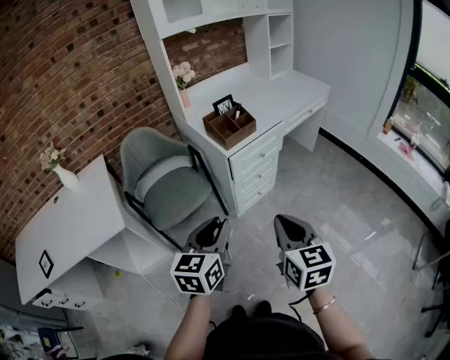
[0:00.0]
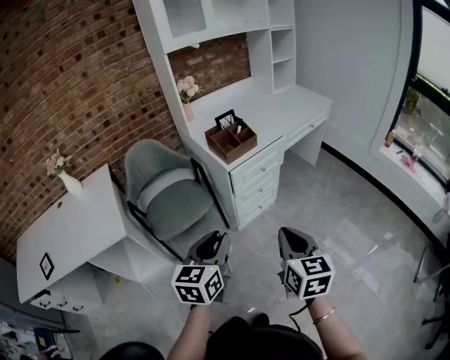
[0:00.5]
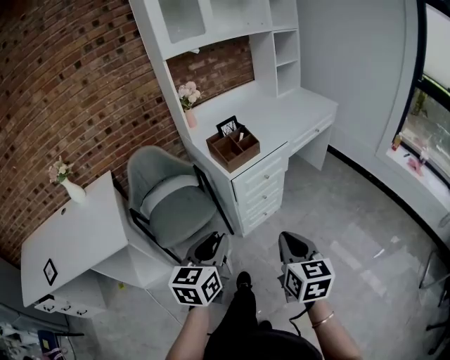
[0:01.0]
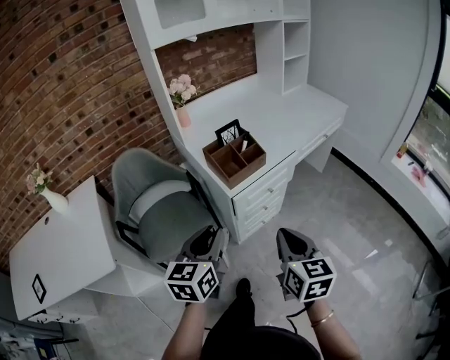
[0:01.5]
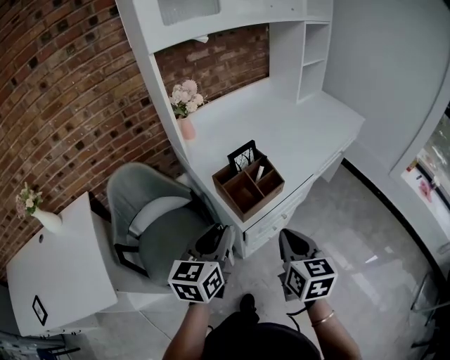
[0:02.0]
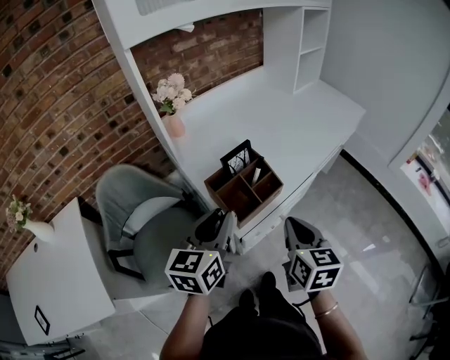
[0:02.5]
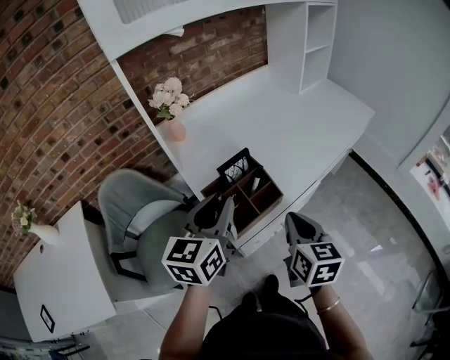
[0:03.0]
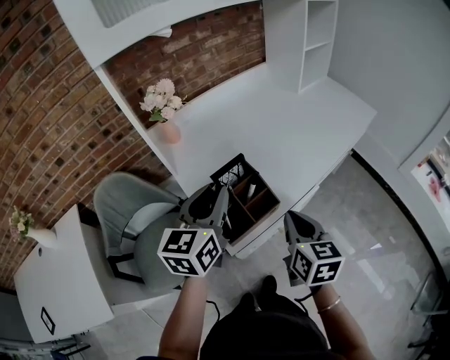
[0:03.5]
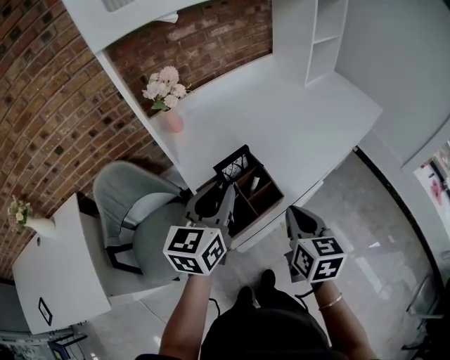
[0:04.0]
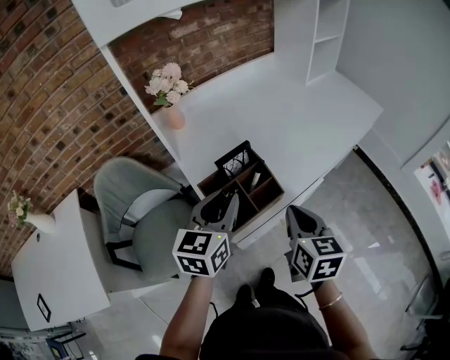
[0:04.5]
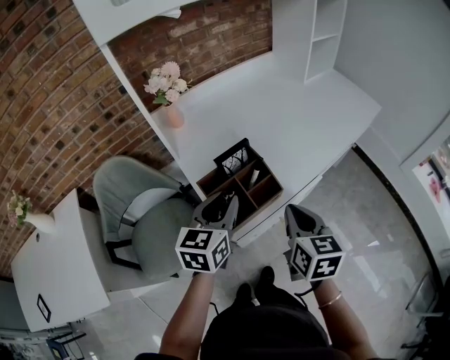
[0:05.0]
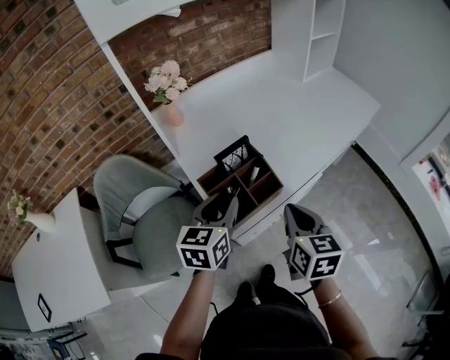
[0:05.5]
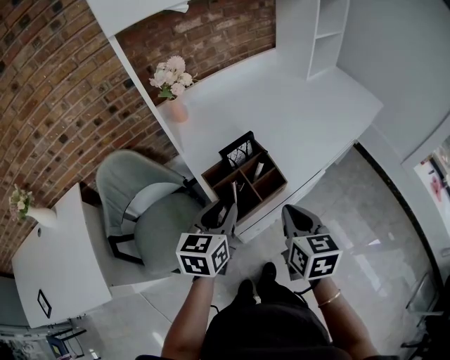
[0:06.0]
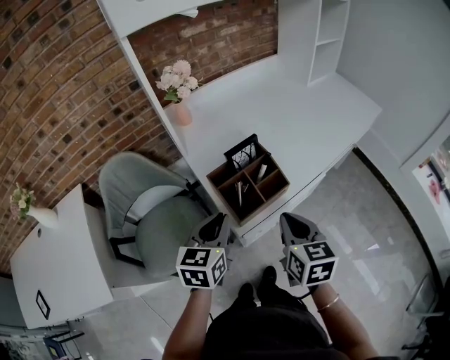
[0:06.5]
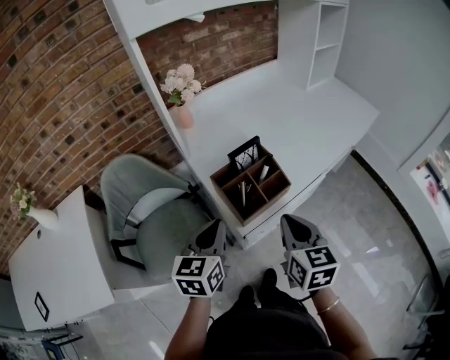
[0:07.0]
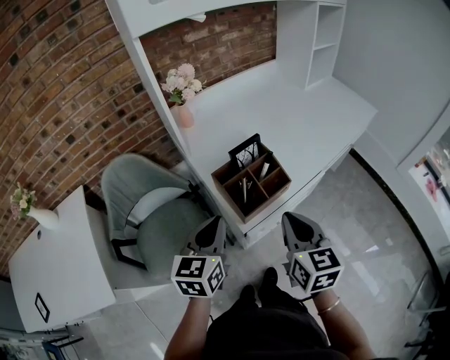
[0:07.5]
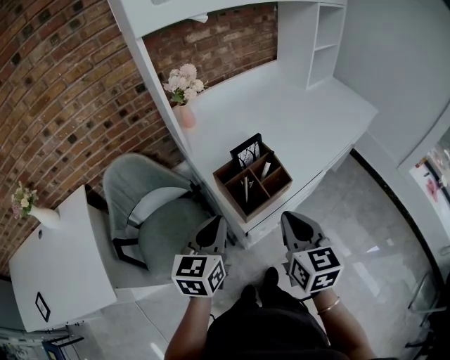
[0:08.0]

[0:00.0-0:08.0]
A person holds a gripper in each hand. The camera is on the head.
0:00.0 to 0:02.0: Both grippers move forward, roughly 35 cm.
0:02.0 to 0:04.0: Both grippers move forward, approximately 15 cm.
0:04.0 to 0:06.0: The left gripper is displaced downward and backward by about 10 cm.
0:06.0 to 0:08.0: The right gripper travels backward by approximately 5 cm. Meanwhile the left gripper travels backward and to the left by approximately 10 cm, and closes.

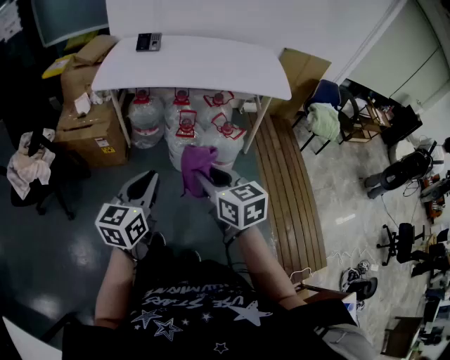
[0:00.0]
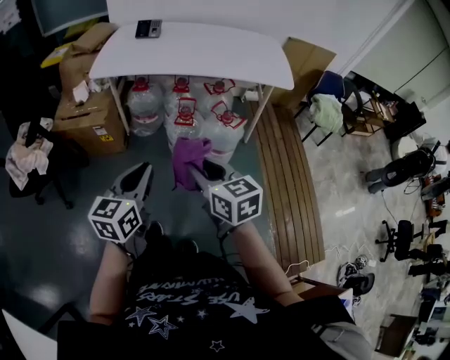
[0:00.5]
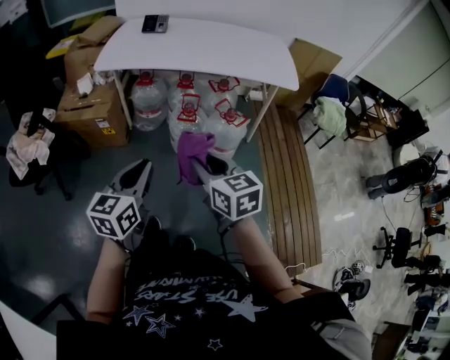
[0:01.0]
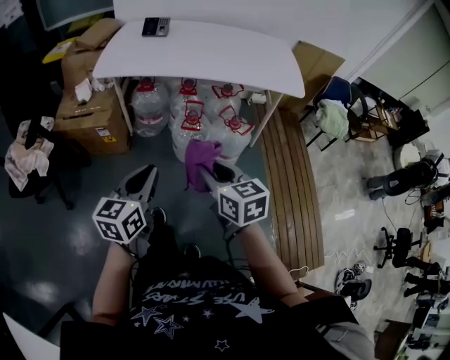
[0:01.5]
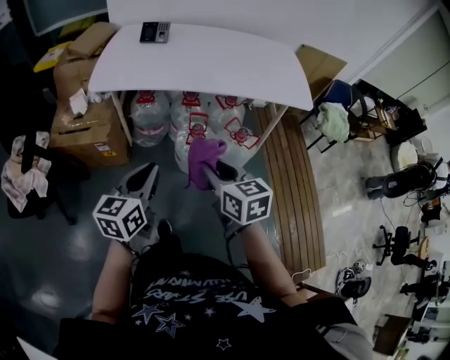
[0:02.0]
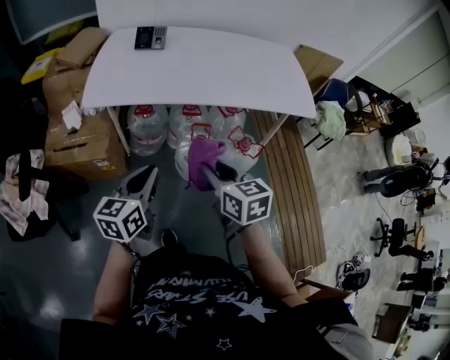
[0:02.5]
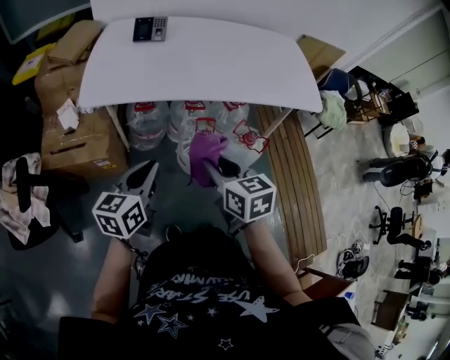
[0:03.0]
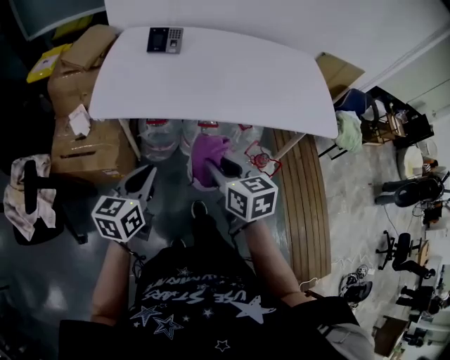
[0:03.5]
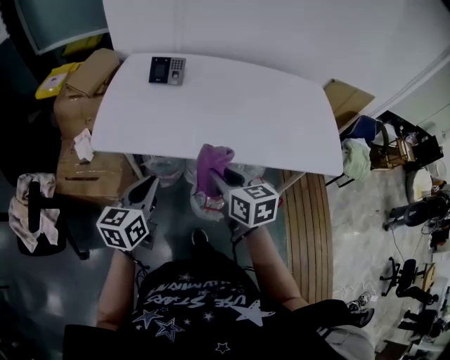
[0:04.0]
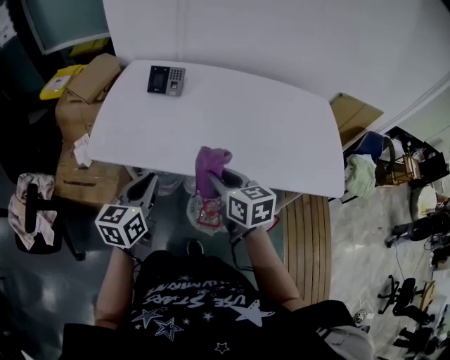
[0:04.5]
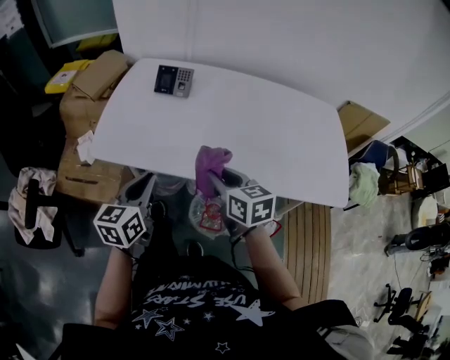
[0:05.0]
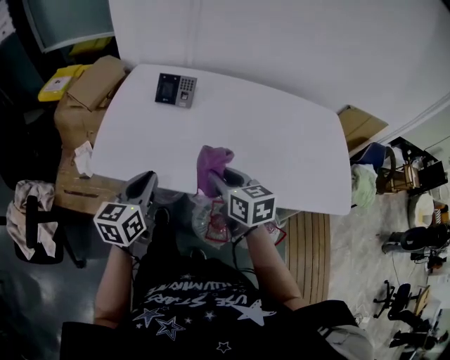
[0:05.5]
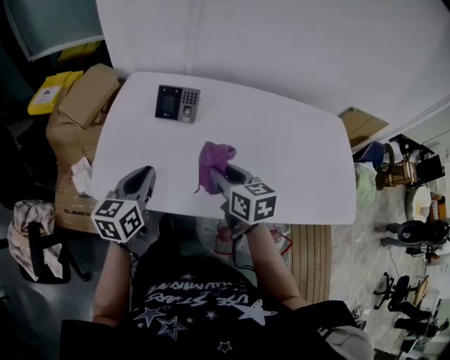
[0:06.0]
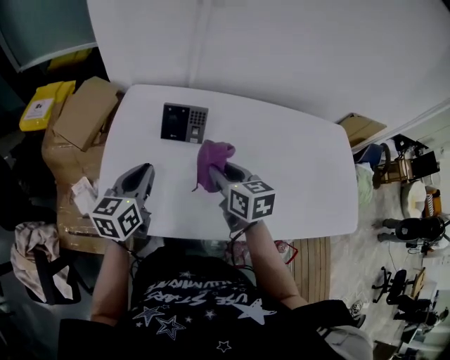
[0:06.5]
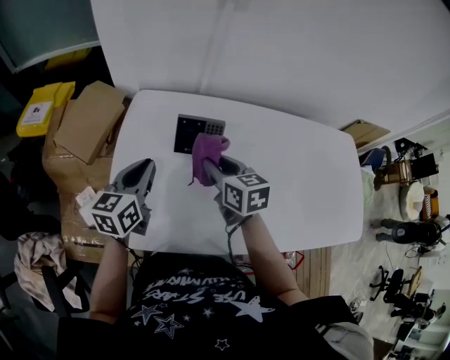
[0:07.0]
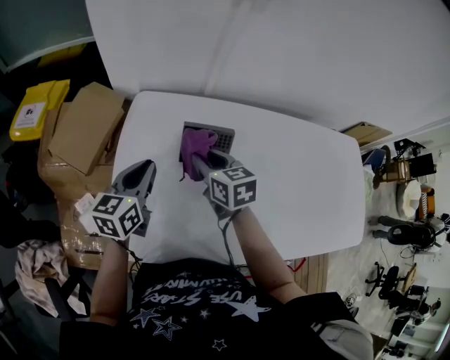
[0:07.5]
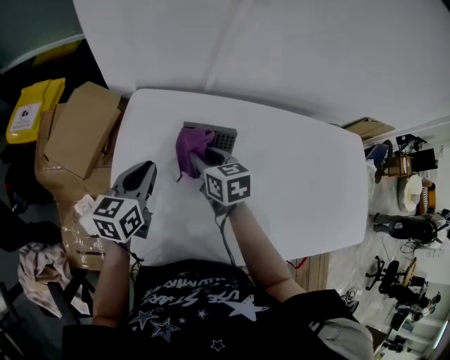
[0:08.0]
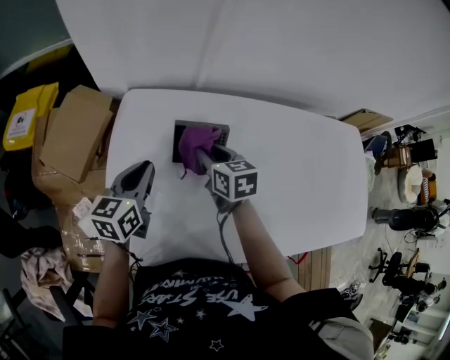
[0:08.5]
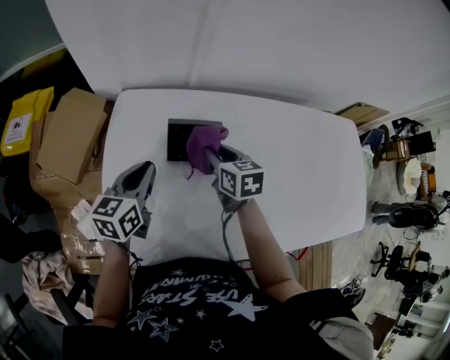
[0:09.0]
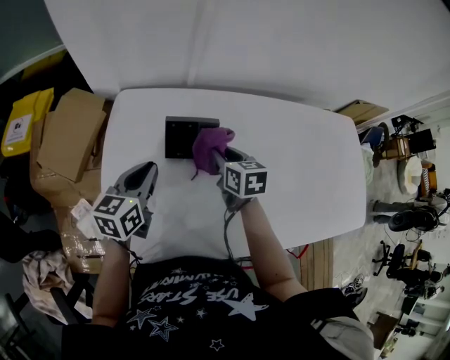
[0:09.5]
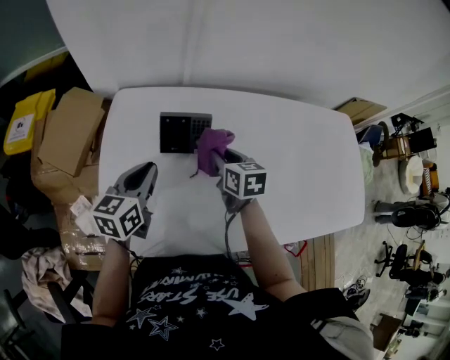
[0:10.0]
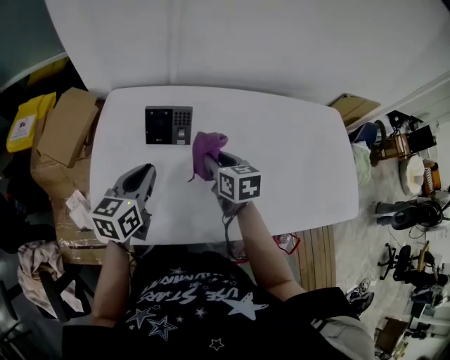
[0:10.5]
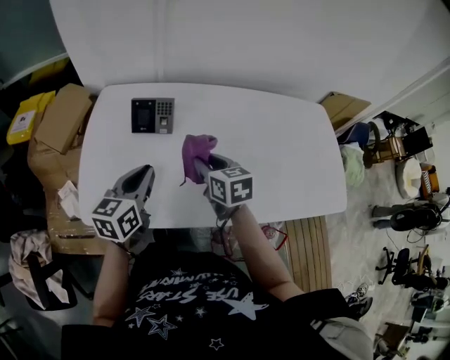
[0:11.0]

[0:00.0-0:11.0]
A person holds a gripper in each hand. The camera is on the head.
0:00.0 to 0:02.0: Both grippers move forward, about 20 cm.
0:02.0 to 0:03.5: The right gripper heads forward, covering approximately 20 cm. Meanwhile the left gripper is displaced forward and to the left by approximately 20 cm.
0:03.5 to 0:05.5: The two grippers go roughly 25 cm forward.
0:05.5 to 0:07.5: The grippers both shift forward and to the left by roughly 40 cm.
0:07.5 to 0:09.0: The right gripper travels to the right by about 10 cm.
0:09.0 to 0:11.0: The two grippers go approximately 20 cm backward and to the right.

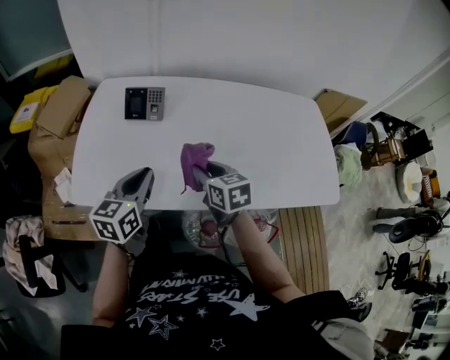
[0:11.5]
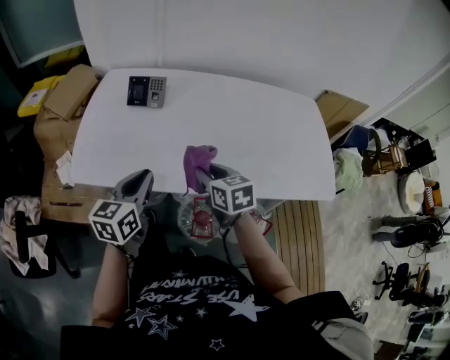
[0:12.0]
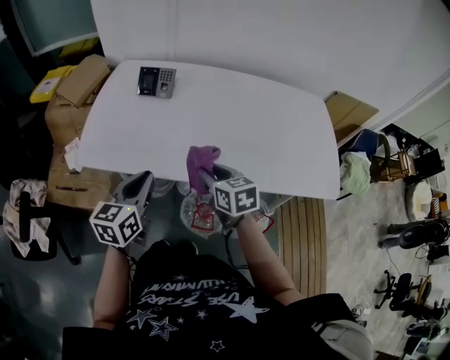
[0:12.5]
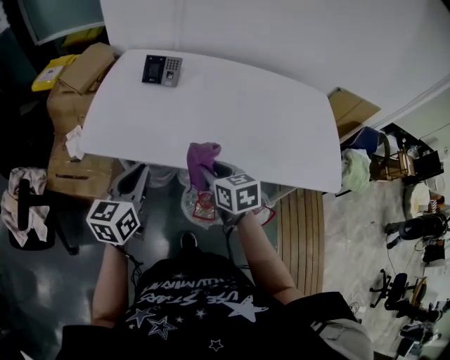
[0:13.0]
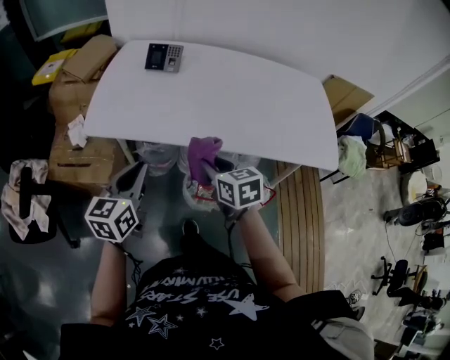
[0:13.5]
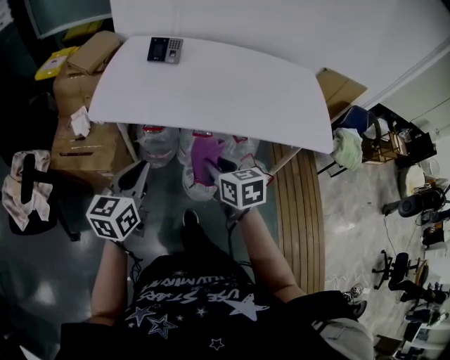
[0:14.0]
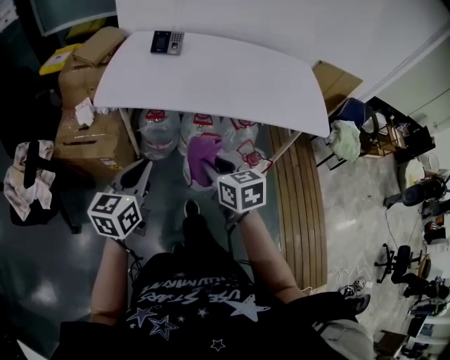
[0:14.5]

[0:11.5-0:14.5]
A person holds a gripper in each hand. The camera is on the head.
0:11.5 to 0:13.0: The grippers both shift backward by some 15 cm.
0:13.0 to 0:14.5: The grippers both shift backward by about 25 cm.

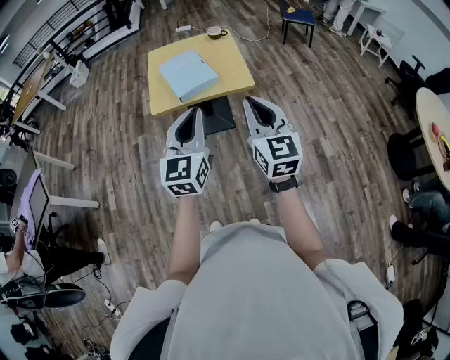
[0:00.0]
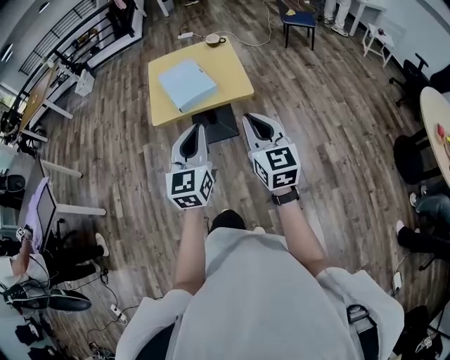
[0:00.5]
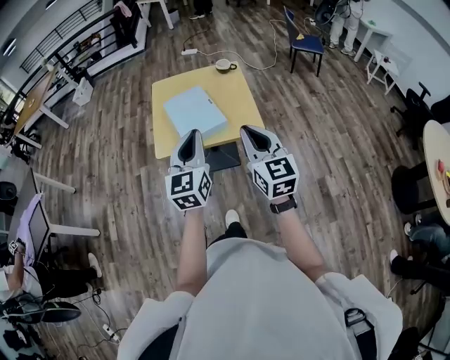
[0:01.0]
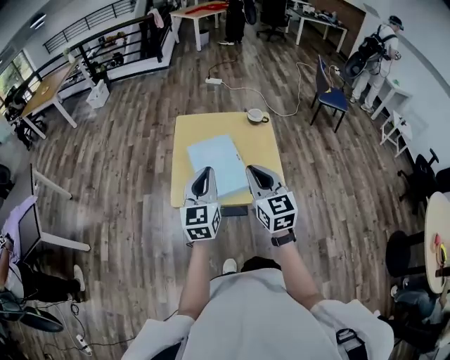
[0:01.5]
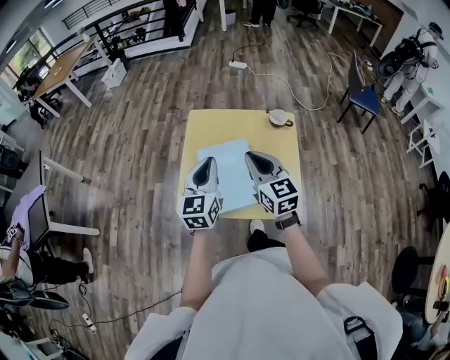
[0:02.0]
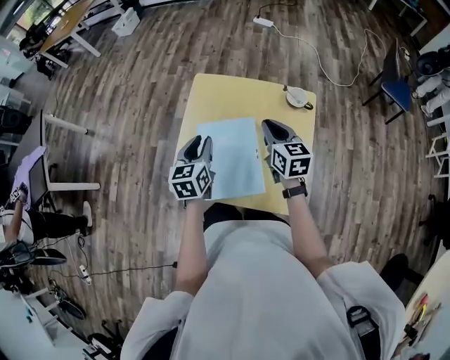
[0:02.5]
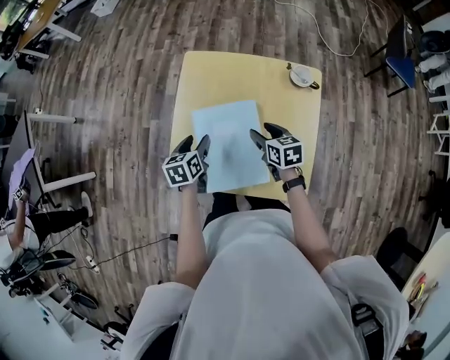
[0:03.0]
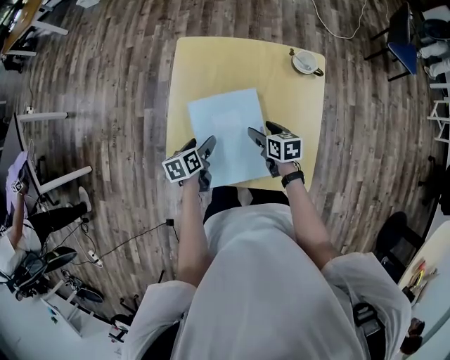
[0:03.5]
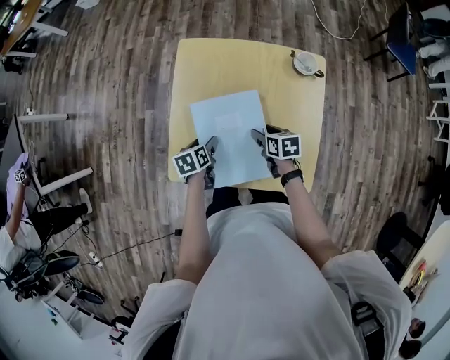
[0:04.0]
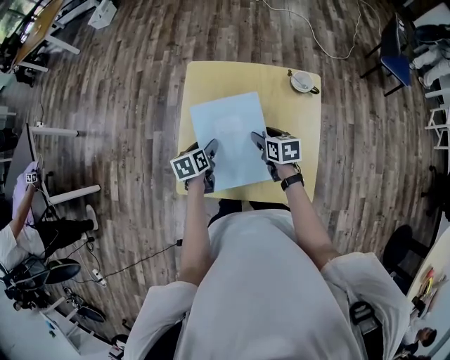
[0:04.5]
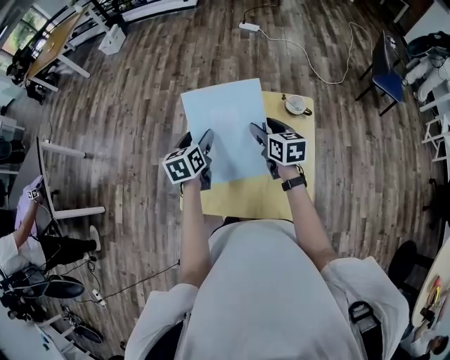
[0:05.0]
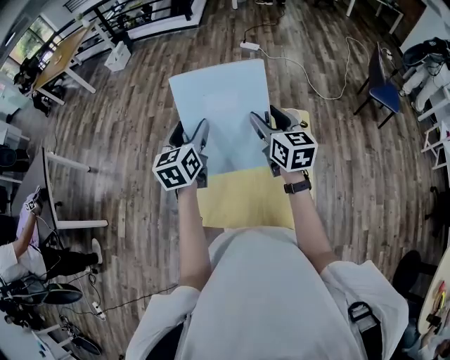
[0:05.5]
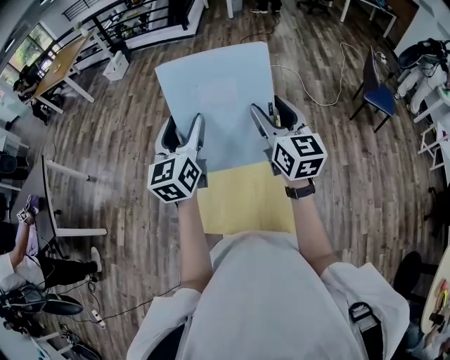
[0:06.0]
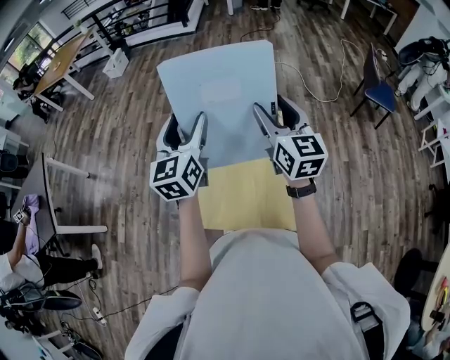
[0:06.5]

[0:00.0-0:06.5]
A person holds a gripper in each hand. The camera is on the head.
0:00.0 to 0:02.0: The pair of grippers is taken forward, about 50 cm. The right gripper swivels about 30 degrees, while the left gripper swivels roughly 20 degrees.
0:02.0 to 0:04.5: The right gripper shifts roughly 30 cm downward and forward, angles its fingers downward, by some 40 degrees, and opens. The left gripper goes some 25 cm downward, angles its fingers downward, by about 40 degrees, and opens its fingers.
0:04.5 to 0:06.5: Both grippers move upward, about 40 cm. The left gripper tips its fingers upward by about 50 degrees, while the right gripper angles its fingers upward, by roughly 40 degrees.
